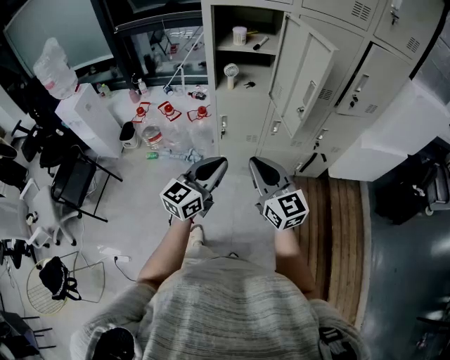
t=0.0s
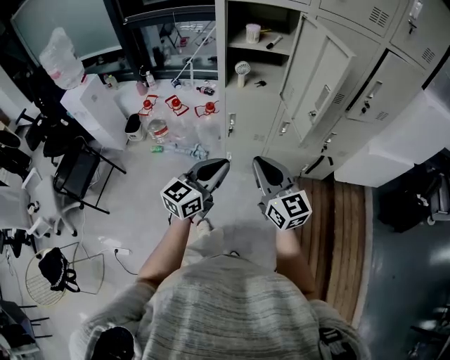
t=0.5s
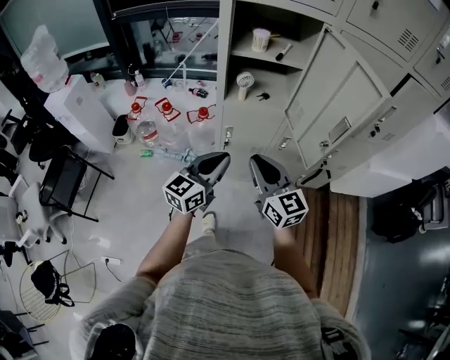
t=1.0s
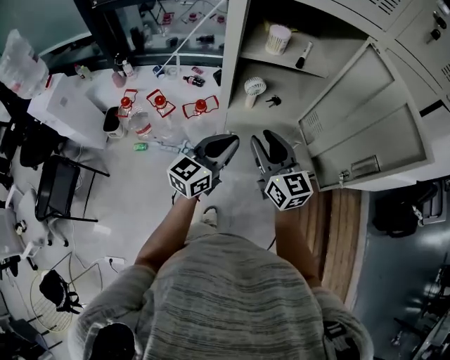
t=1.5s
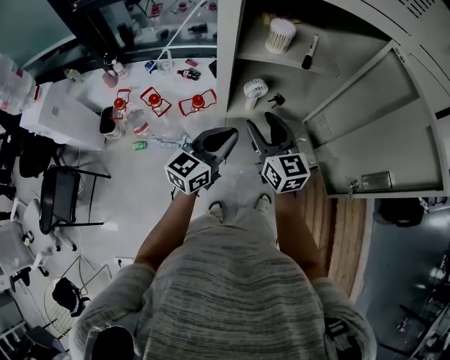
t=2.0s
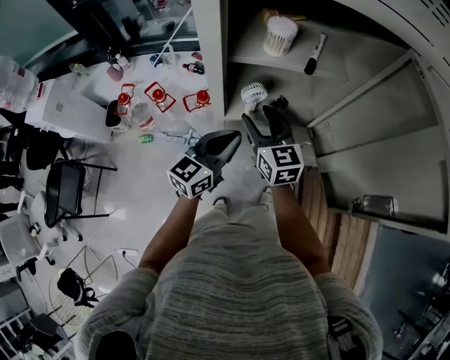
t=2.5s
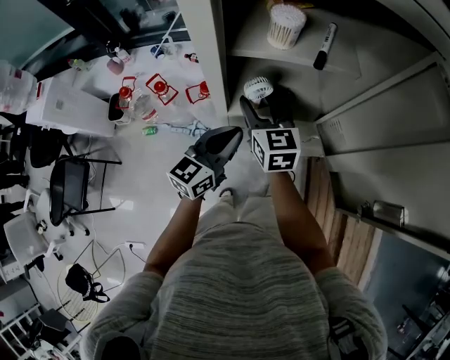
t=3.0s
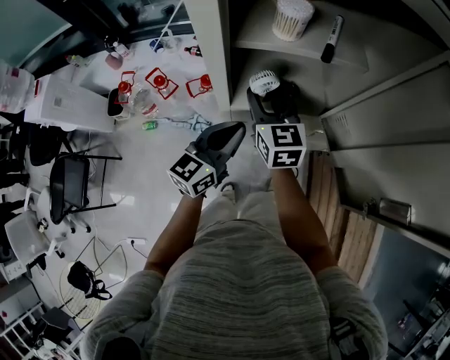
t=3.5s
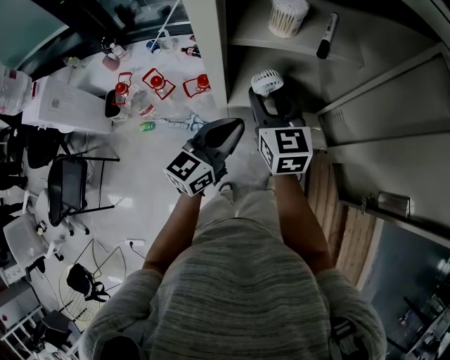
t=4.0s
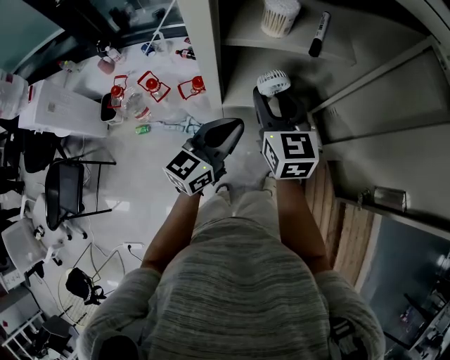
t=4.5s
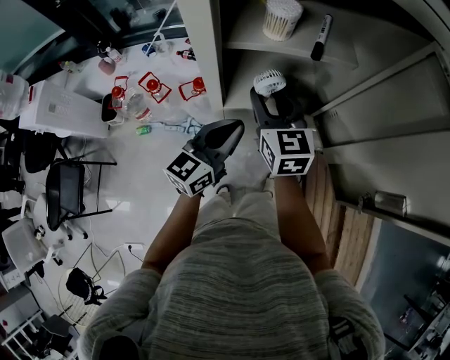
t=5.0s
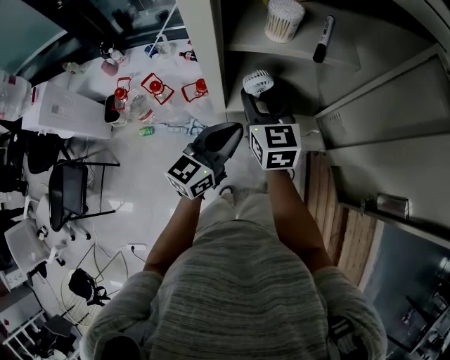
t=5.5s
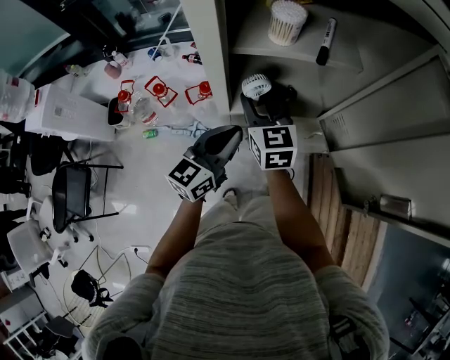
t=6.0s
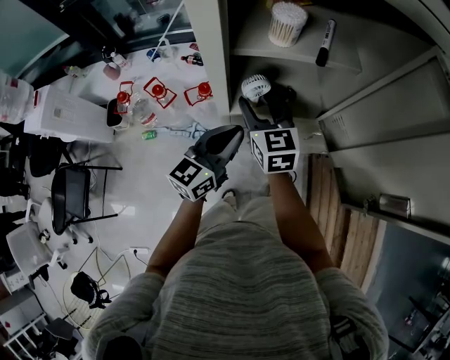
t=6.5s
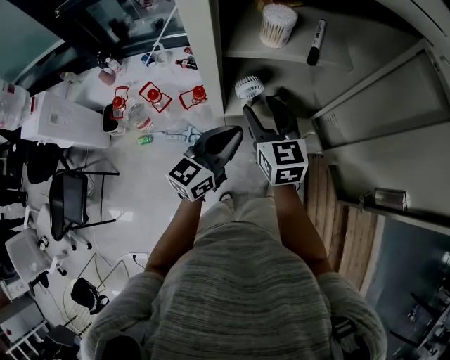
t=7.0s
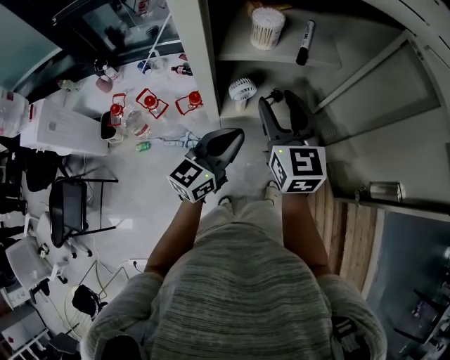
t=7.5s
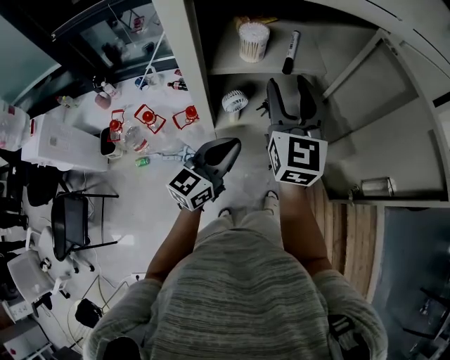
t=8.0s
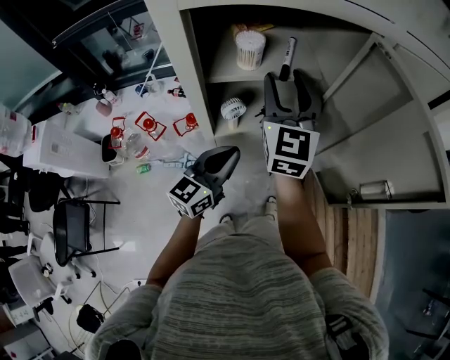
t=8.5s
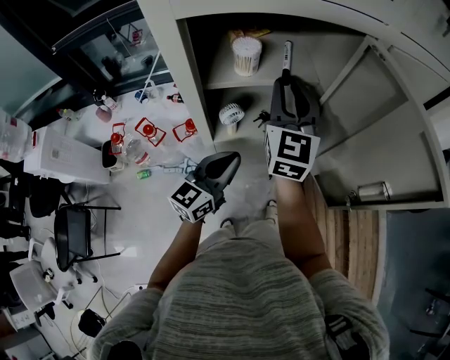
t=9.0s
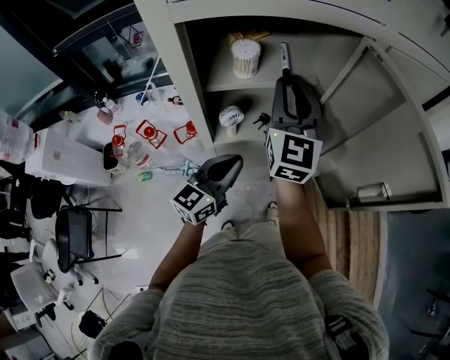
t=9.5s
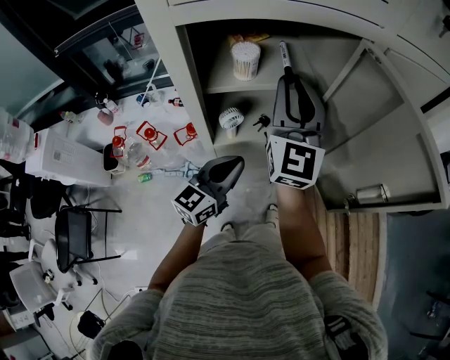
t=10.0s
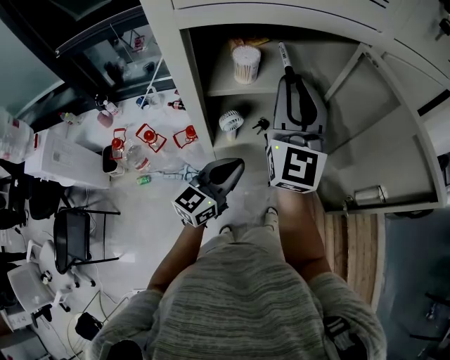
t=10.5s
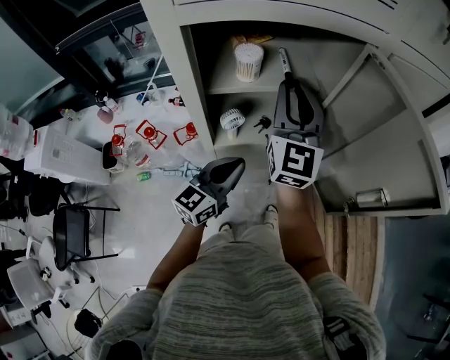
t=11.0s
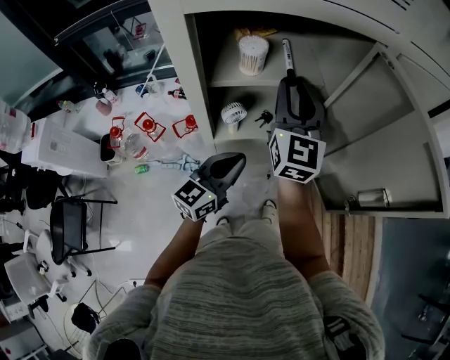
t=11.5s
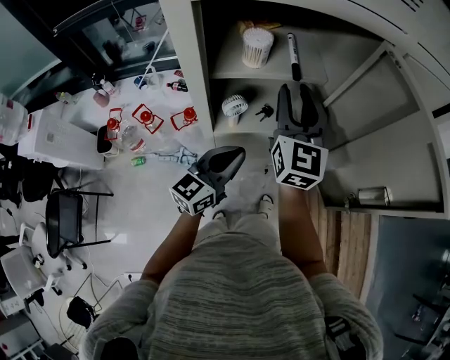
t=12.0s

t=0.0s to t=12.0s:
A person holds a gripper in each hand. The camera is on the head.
t=0.0s to t=2.0s: Both grippers move forward, approximately 35 cm. The right gripper opens its fingers.
t=2.0s to t=4.0s: The right gripper moves forward, approximately 5 cm.
t=4.0s to t=6.0s: There are only small adjustments of the grippers.
t=6.0s to t=8.0s: The right gripper moves upward and to the right, approximately 20 cm, and turns by some 30 degrees.
t=8.0s to t=10.0s: The right gripper is displaced upward by about 5 cm, and closes.
t=10.0s to t=12.0s: The right gripper heads downward, covering some 5 cm.

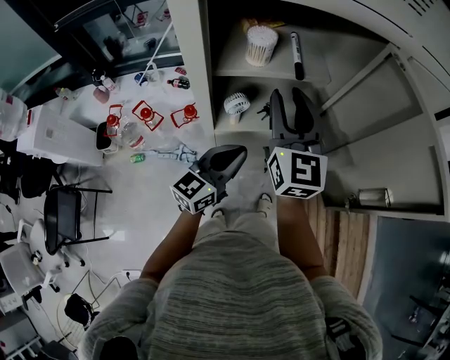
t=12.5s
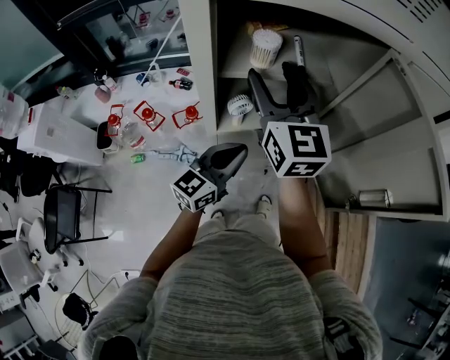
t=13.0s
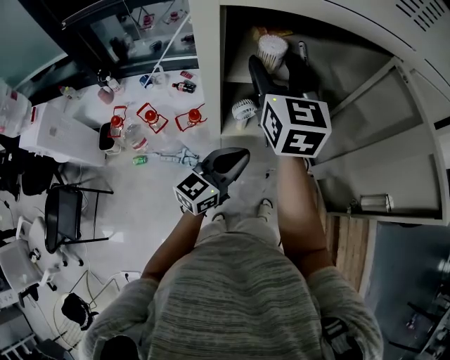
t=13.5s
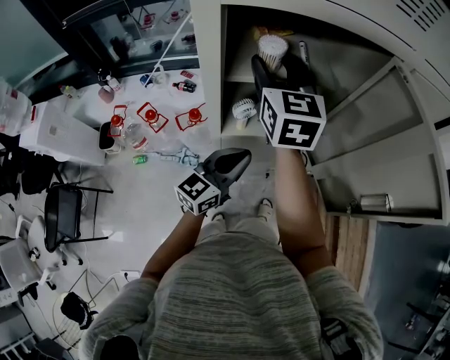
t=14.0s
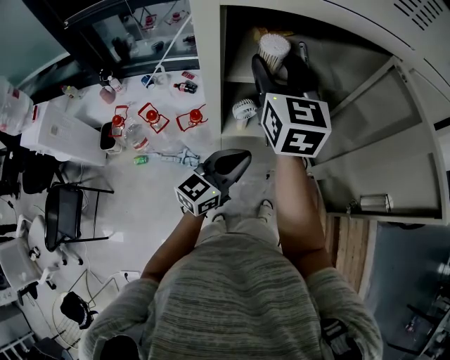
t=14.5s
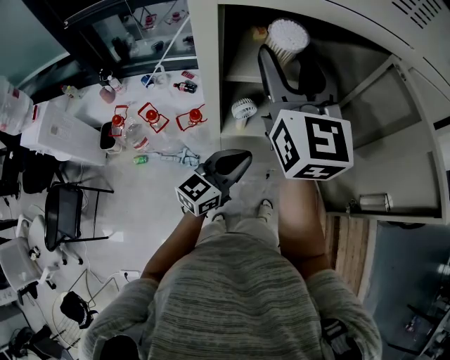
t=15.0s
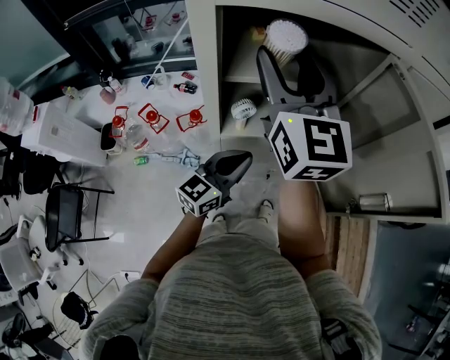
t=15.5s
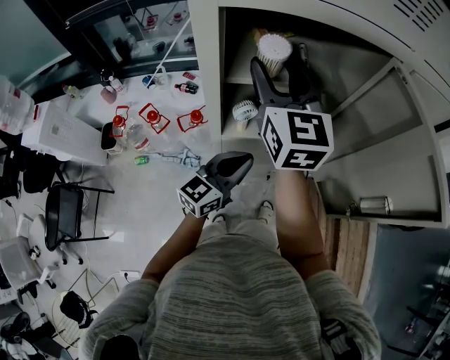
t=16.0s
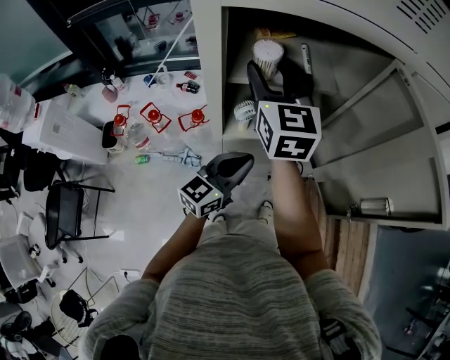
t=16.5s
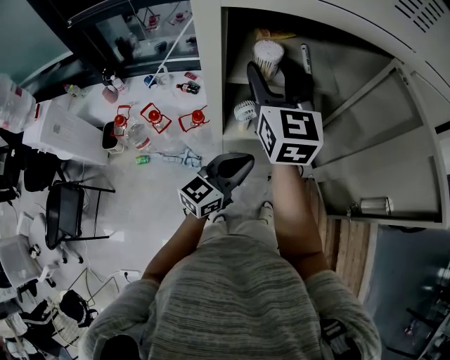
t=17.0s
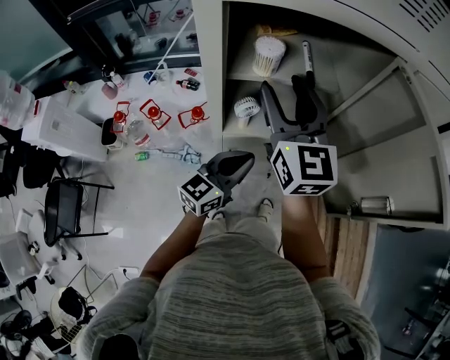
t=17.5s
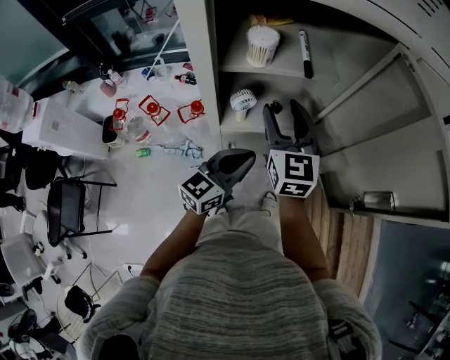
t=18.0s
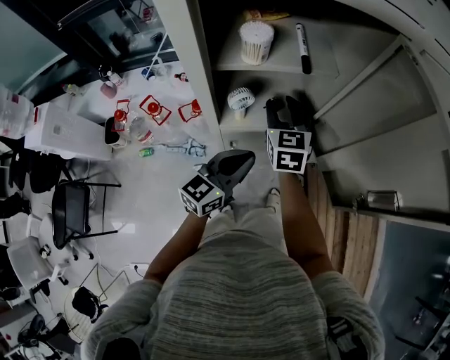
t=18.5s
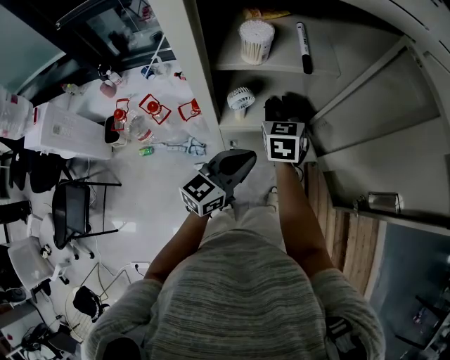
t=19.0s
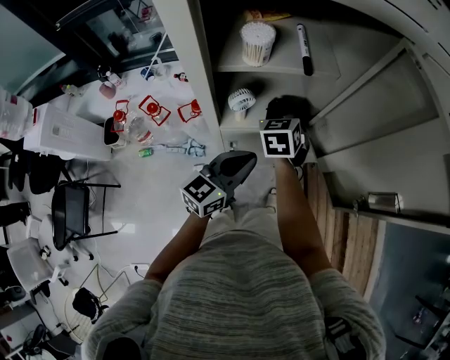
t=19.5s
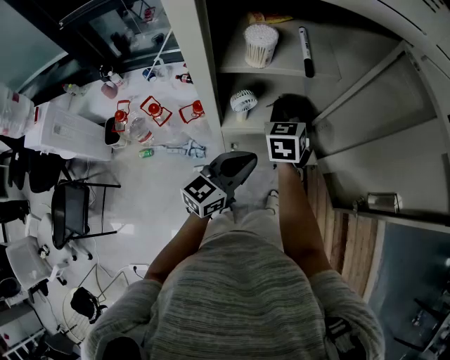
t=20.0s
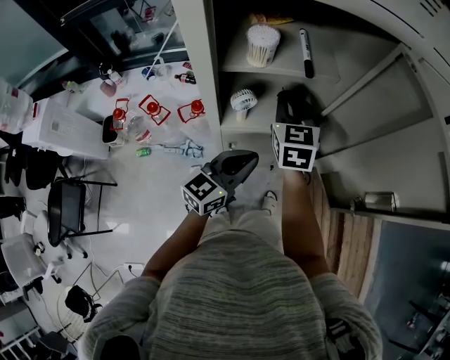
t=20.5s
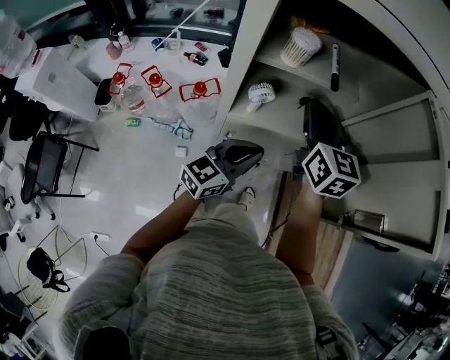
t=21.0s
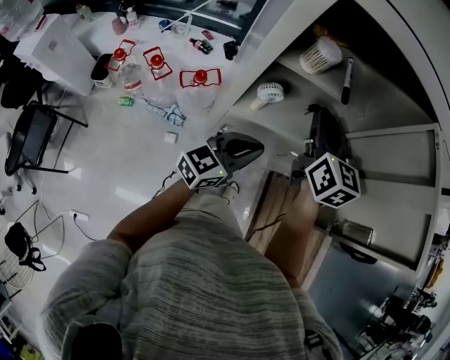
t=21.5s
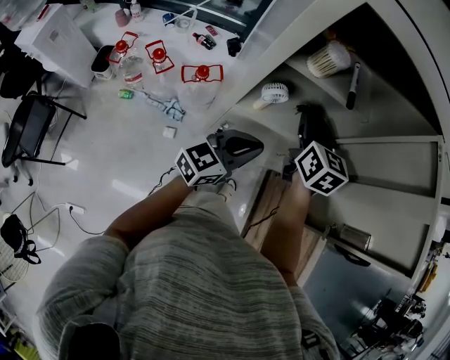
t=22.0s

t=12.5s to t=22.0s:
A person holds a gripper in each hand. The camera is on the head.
t=12.5s to t=14.5s: The right gripper goes roughly 10 cm to the left and upward, and opens.
t=14.5s to t=16.5s: The right gripper goes upward and returns, roughly 5 cm each way.
t=16.5s to t=18.0s: The right gripper moves downward and to the right, about 15 cm.
t=18.0s to t=20.0s: The right gripper moves downward and forward, approximately 10 cm, turns by roughly 30 degrees, and closes its fingers.
t=20.0s to t=22.0s: The right gripper shifts approximately 10 cm upward, and changes its angle by some 20 degrees.

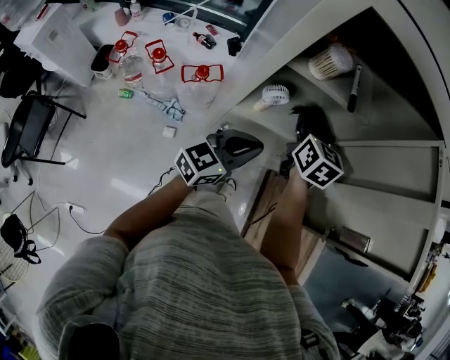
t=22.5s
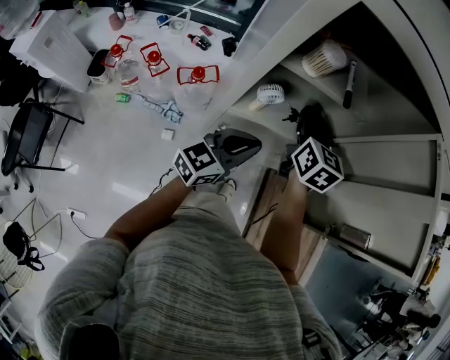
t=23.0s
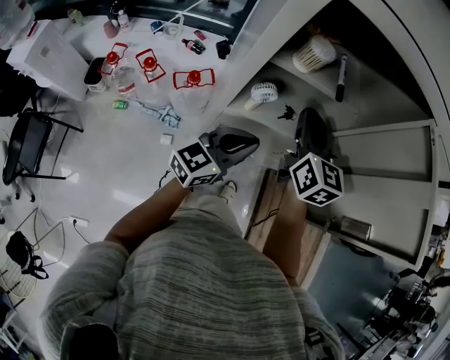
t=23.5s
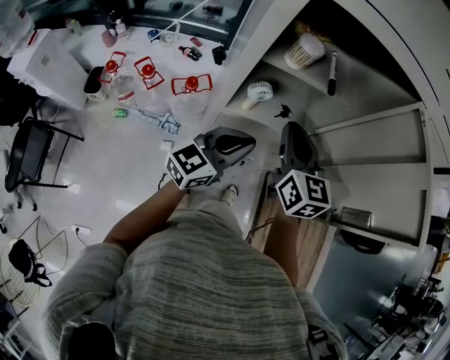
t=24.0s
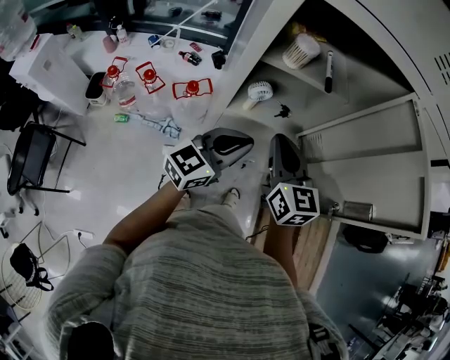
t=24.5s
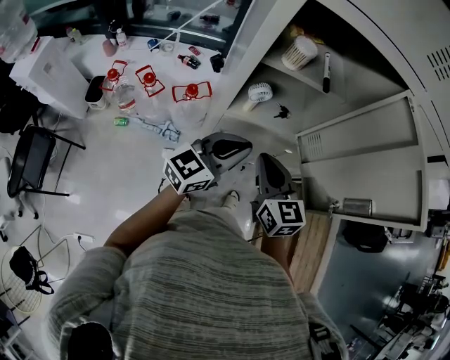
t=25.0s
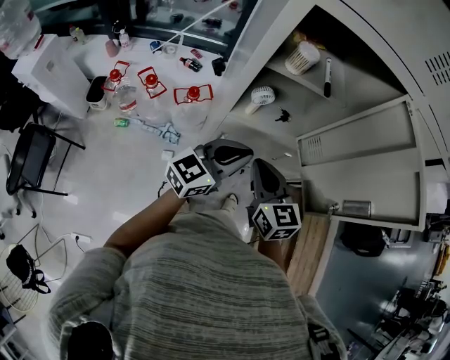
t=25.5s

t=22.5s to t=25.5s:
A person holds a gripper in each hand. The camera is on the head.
t=22.5s to t=24.0s: The right gripper travels backward and upward by about 10 cm.
t=24.0s to t=25.5s: The right gripper travels backward and downward by about 15 cm.

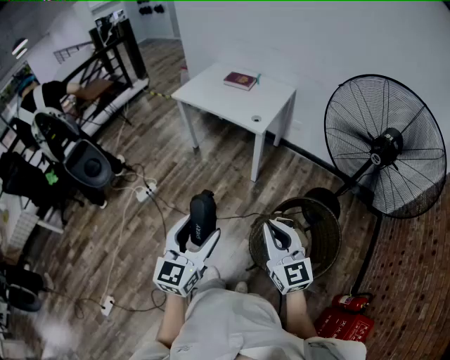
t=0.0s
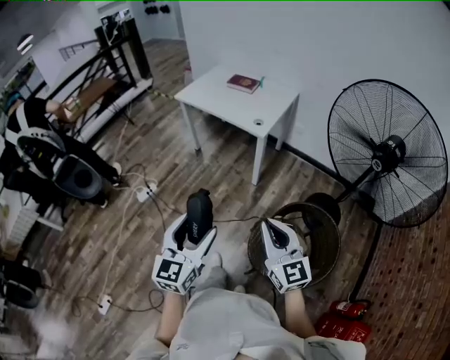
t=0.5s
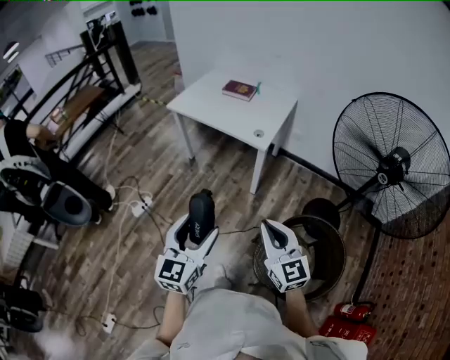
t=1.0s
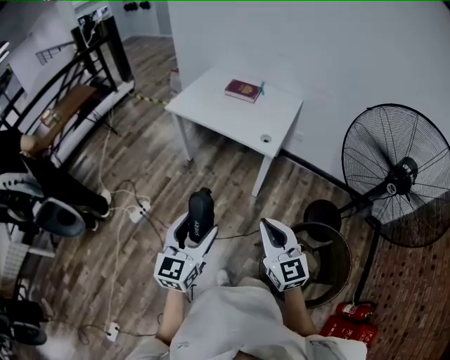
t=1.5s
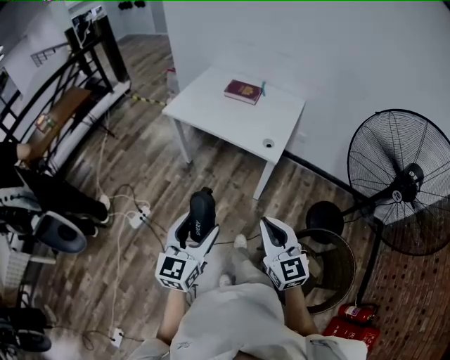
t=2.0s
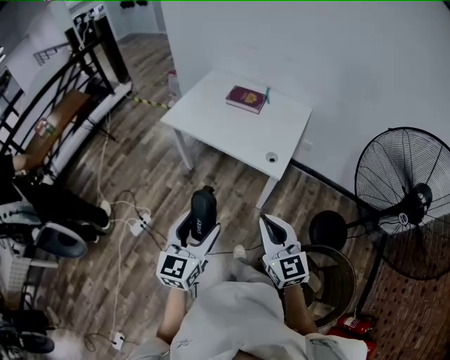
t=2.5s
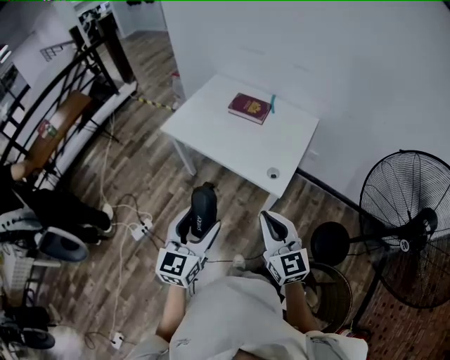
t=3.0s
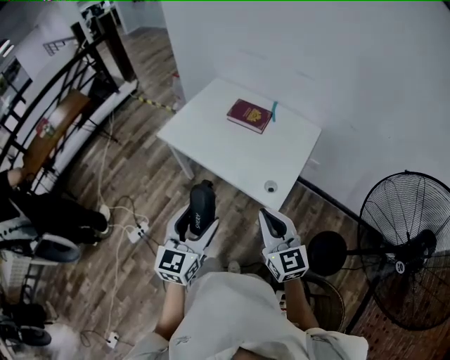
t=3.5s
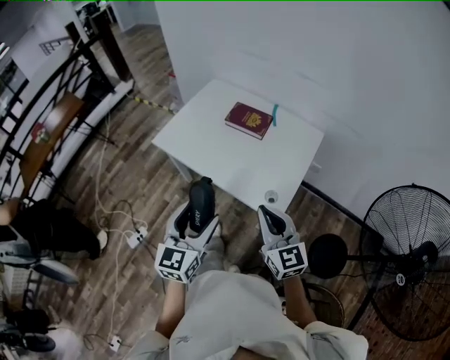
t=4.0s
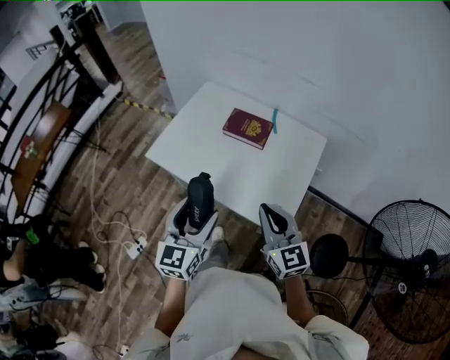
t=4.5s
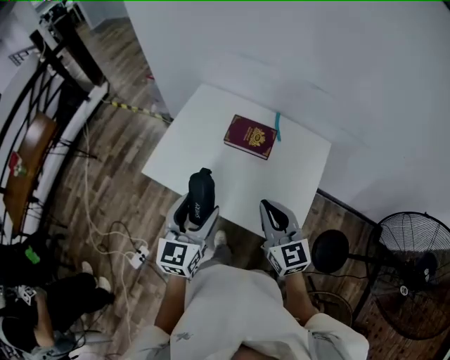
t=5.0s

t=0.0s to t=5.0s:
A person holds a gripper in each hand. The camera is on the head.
t=0.0s to t=2.5s: Both grippers travel together forward, roughly 35 cm.
t=2.5s to t=5.0s: The pair of grippers is taken forward, roughly 40 cm.
